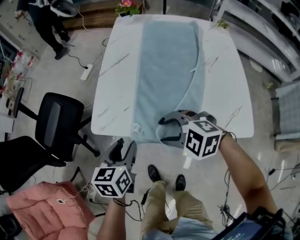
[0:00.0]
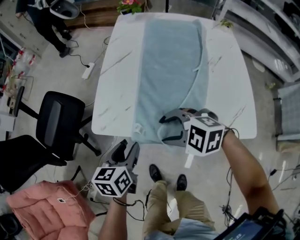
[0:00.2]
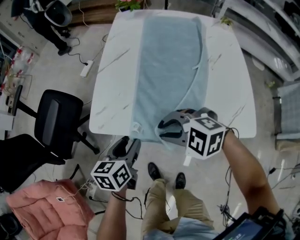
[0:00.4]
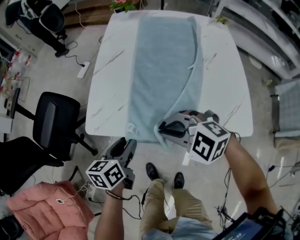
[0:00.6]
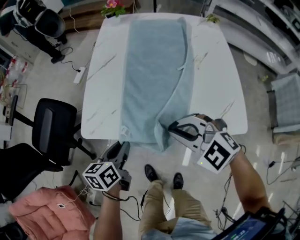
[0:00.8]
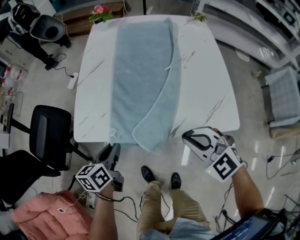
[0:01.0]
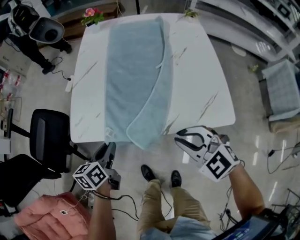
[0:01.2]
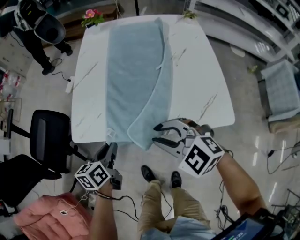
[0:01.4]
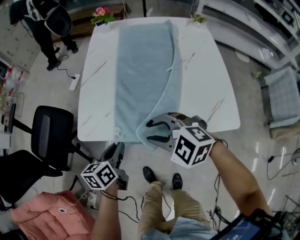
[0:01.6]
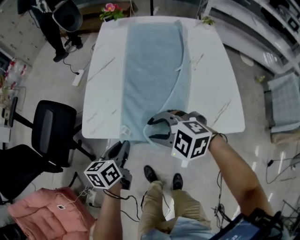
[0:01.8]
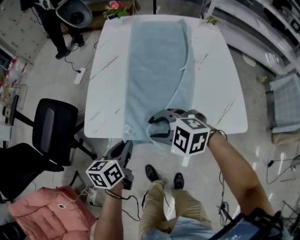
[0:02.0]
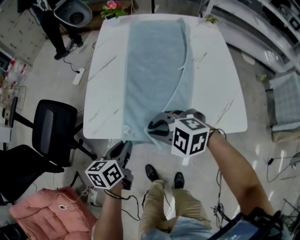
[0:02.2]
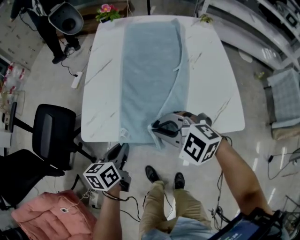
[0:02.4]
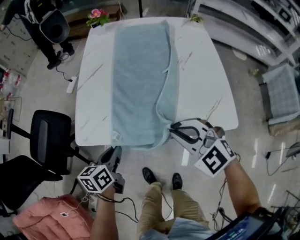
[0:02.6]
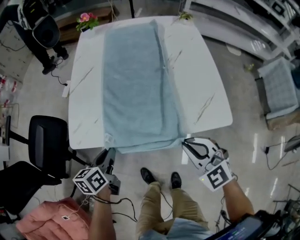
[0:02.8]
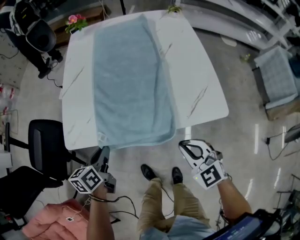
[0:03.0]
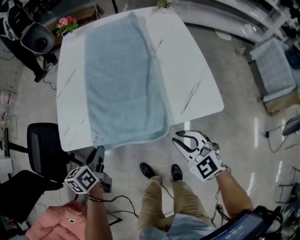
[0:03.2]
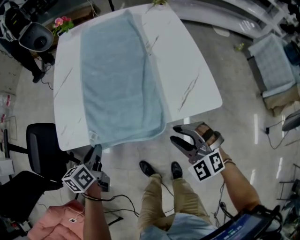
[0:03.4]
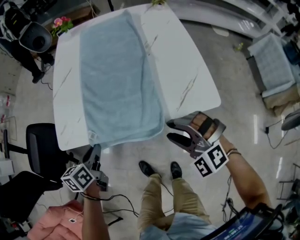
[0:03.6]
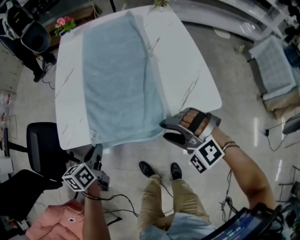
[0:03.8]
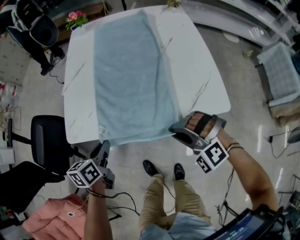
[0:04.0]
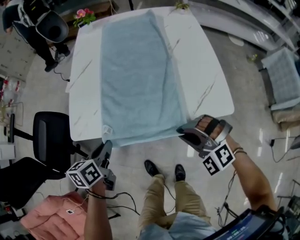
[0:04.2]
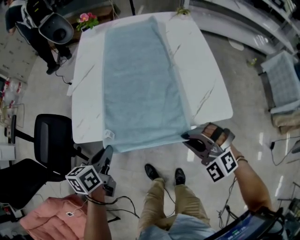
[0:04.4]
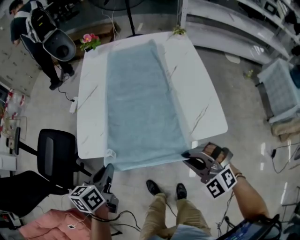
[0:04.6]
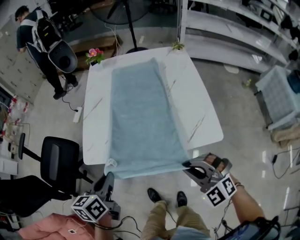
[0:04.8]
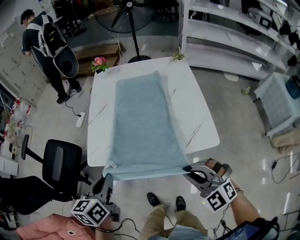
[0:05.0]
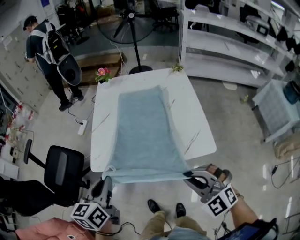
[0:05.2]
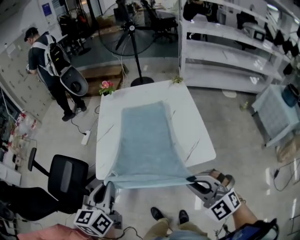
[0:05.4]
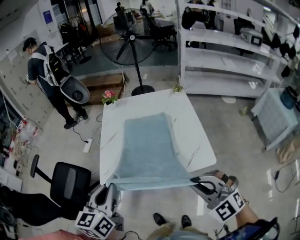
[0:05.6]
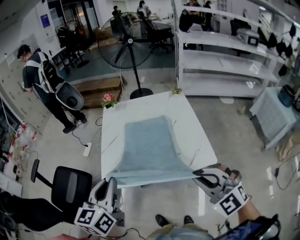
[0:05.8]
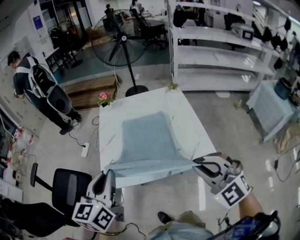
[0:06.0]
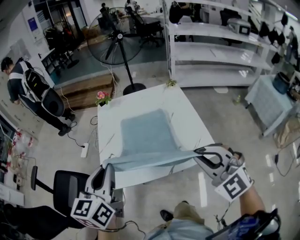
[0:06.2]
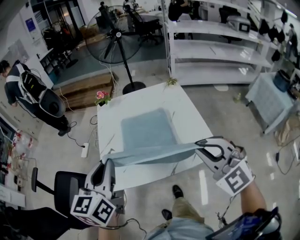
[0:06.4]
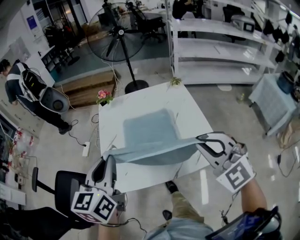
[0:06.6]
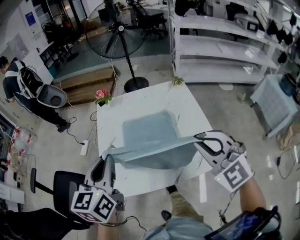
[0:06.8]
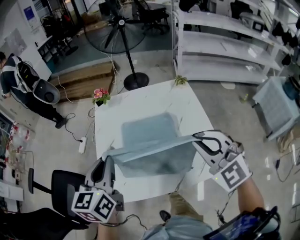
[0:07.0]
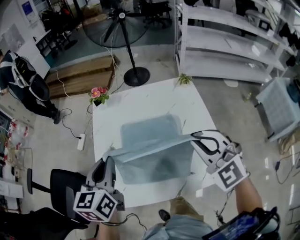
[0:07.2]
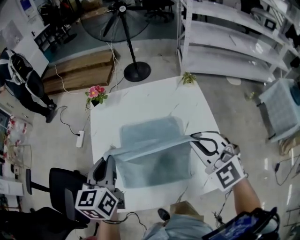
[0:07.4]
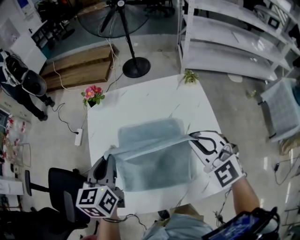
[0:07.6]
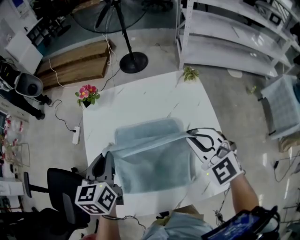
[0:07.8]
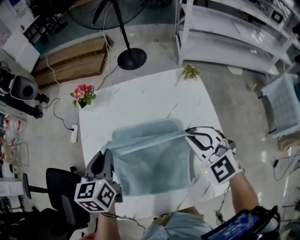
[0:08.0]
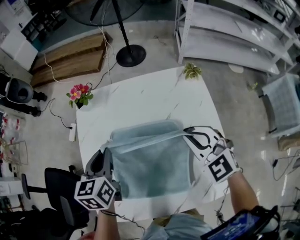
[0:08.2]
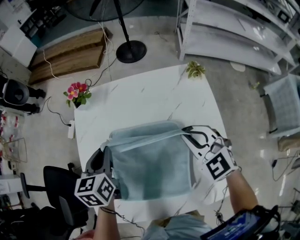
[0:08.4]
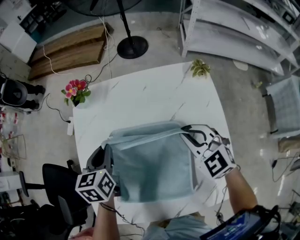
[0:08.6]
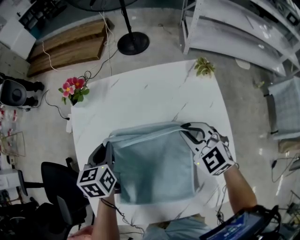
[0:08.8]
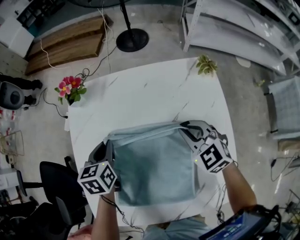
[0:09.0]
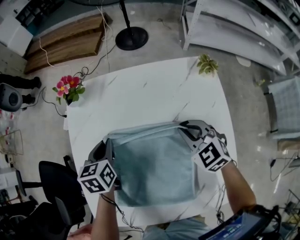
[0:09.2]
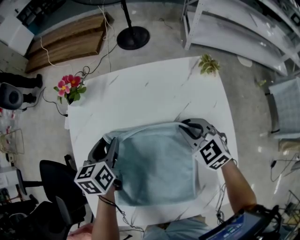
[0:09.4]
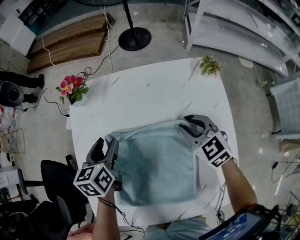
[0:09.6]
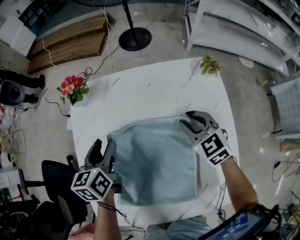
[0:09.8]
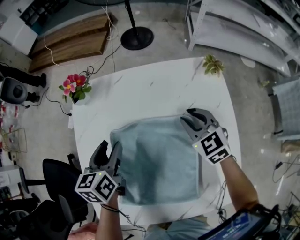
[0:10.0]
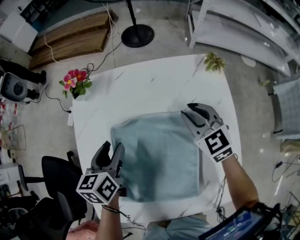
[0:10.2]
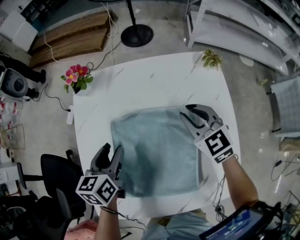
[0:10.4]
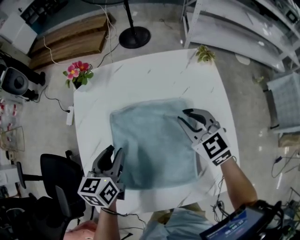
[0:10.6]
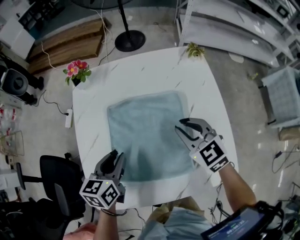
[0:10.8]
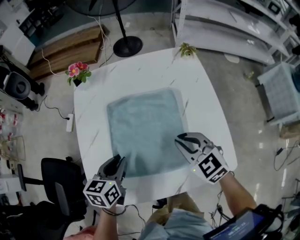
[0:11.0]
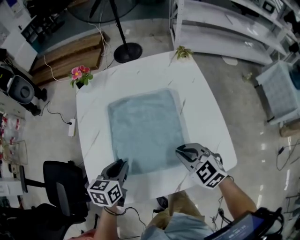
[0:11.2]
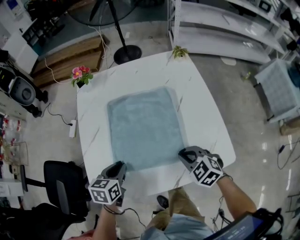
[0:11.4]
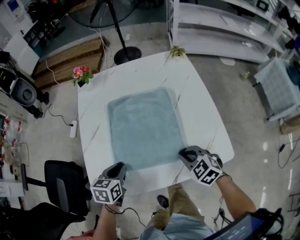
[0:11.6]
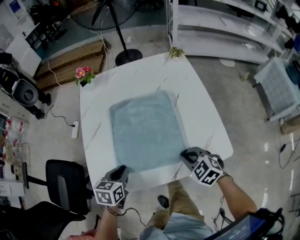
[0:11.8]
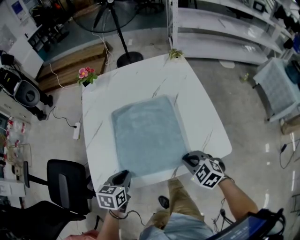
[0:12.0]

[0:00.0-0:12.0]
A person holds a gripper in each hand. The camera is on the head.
0:00.0 to 0:01.6: The right gripper travels to the right and back again, some 15 cm each way, and closes, then reopens. Meanwhile the left gripper closes up.
0:01.6 to 0:03.0: The right gripper moves to the right and backward, approximately 20 cm, turns by roughly 40 degrees, and closes up.
0:03.0 to 0:04.4: The right gripper rotates roughly 40 degrees, and opens, then closes again.
0:04.4 to 0:06.0: The grippers both shift upward by some 30 cm. The right gripper rotates about 30 degrees, while the left gripper turns by approximately 40 degrees.
0:06.0 to 0:07.6: The right gripper goes roughly 30 cm forward; the left gripper moves forward and downward, approximately 30 cm.
0:07.6 to 0:09.0: Both grippers move downward and forward, approximately 20 cm.
0:09.0 to 0:10.4: The left gripper shifts about 5 cm backward, and opens.
0:10.4 to 0:12.0: The two grippers go about 30 cm backward. The left gripper rotates some 20 degrees, and closes its fingers.

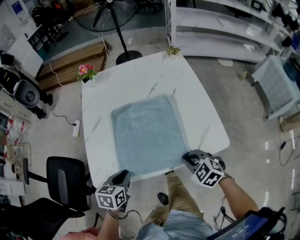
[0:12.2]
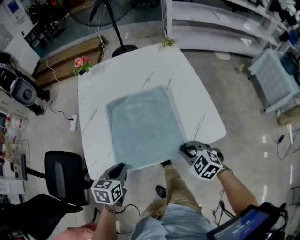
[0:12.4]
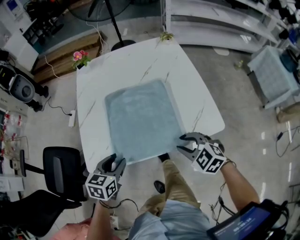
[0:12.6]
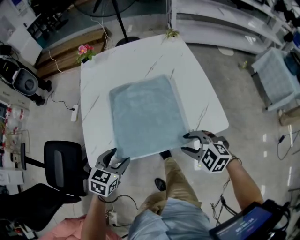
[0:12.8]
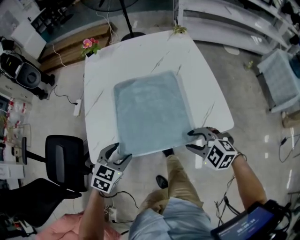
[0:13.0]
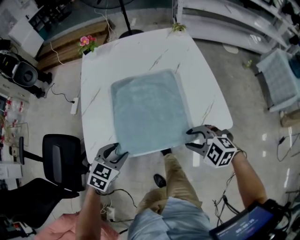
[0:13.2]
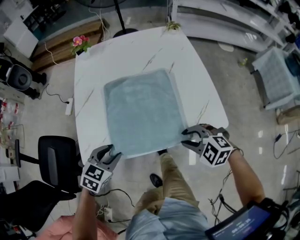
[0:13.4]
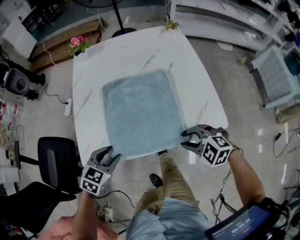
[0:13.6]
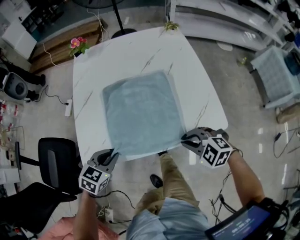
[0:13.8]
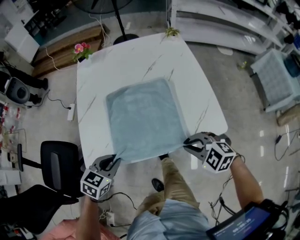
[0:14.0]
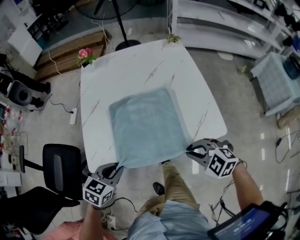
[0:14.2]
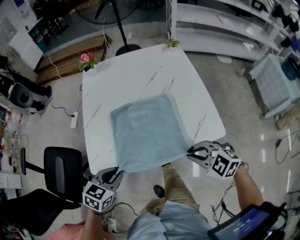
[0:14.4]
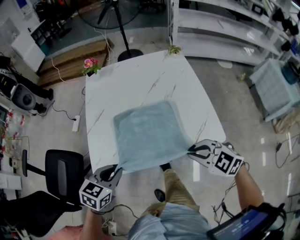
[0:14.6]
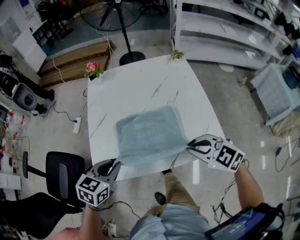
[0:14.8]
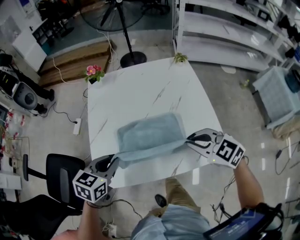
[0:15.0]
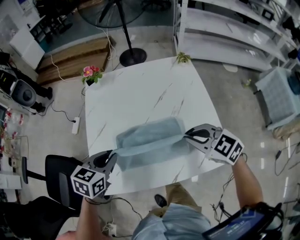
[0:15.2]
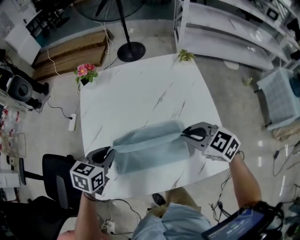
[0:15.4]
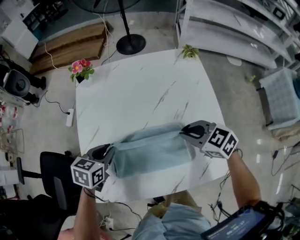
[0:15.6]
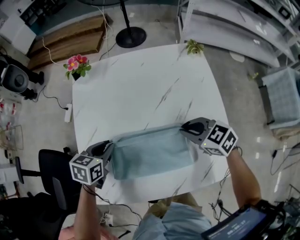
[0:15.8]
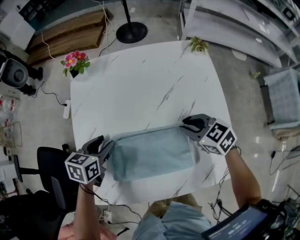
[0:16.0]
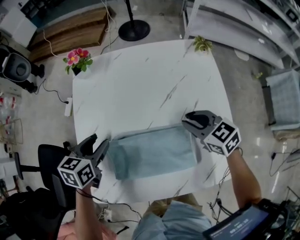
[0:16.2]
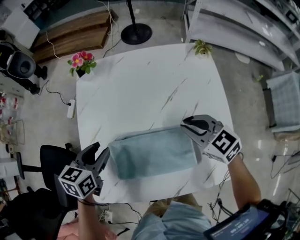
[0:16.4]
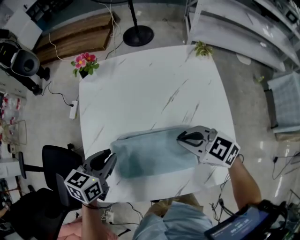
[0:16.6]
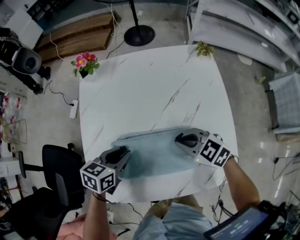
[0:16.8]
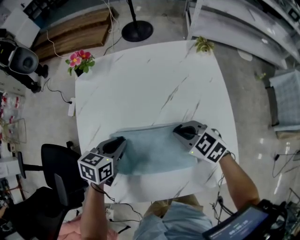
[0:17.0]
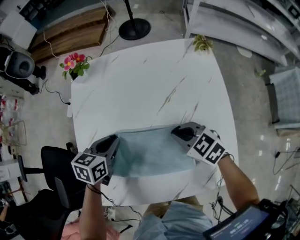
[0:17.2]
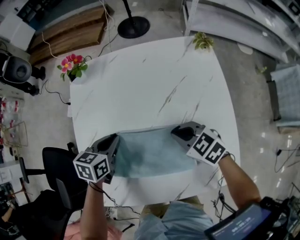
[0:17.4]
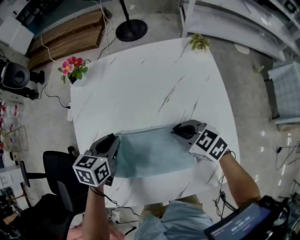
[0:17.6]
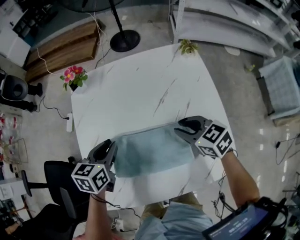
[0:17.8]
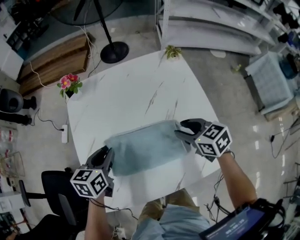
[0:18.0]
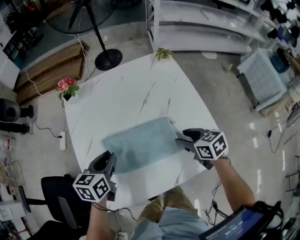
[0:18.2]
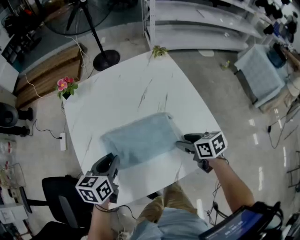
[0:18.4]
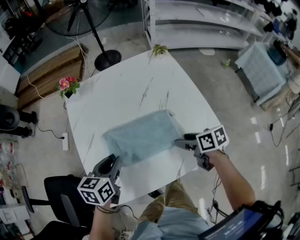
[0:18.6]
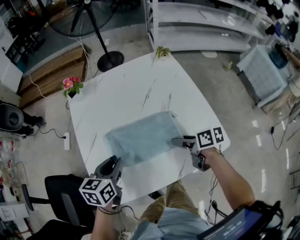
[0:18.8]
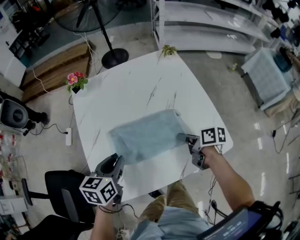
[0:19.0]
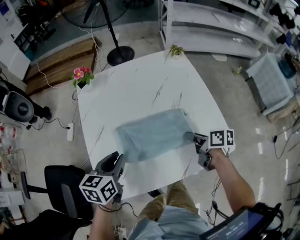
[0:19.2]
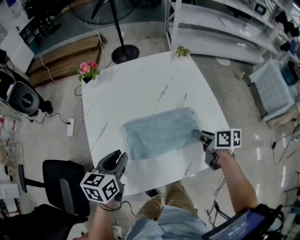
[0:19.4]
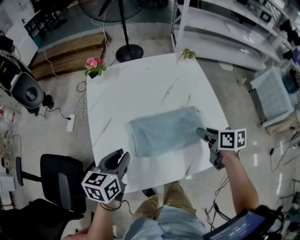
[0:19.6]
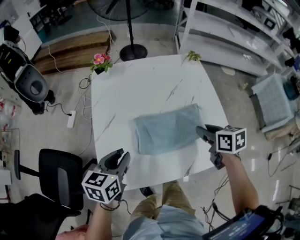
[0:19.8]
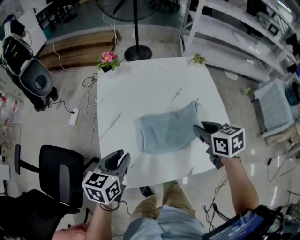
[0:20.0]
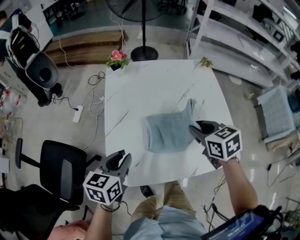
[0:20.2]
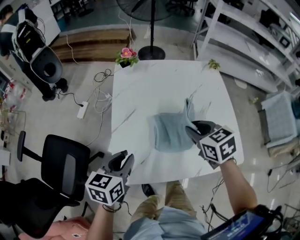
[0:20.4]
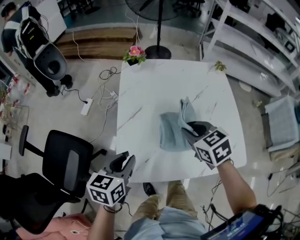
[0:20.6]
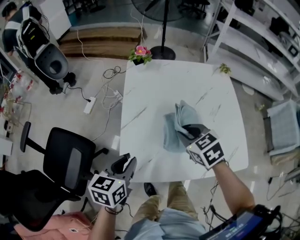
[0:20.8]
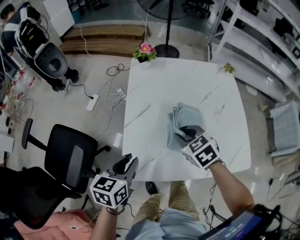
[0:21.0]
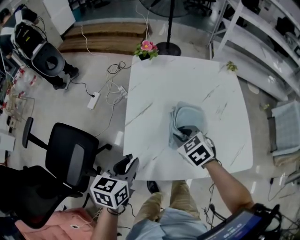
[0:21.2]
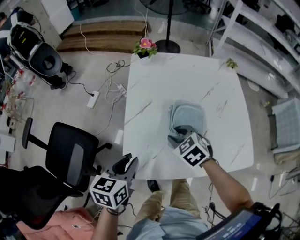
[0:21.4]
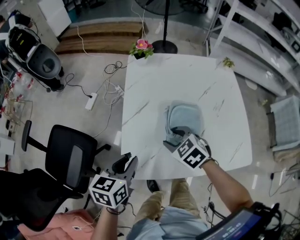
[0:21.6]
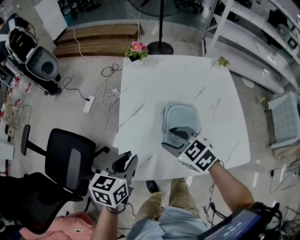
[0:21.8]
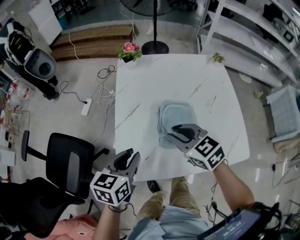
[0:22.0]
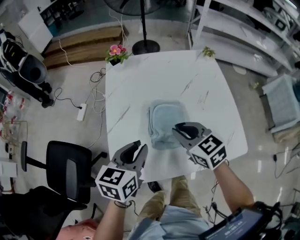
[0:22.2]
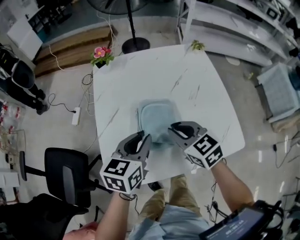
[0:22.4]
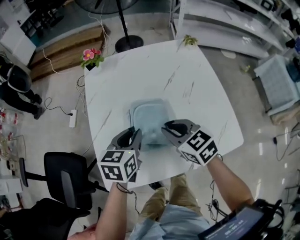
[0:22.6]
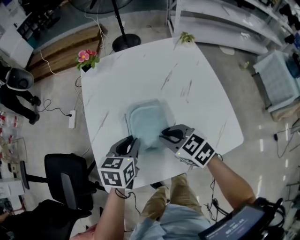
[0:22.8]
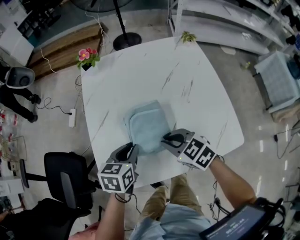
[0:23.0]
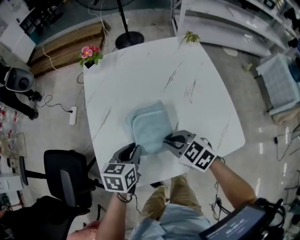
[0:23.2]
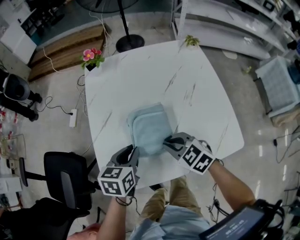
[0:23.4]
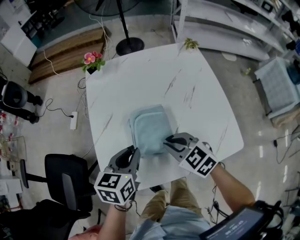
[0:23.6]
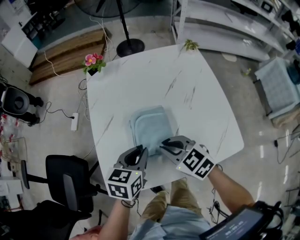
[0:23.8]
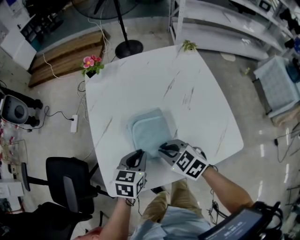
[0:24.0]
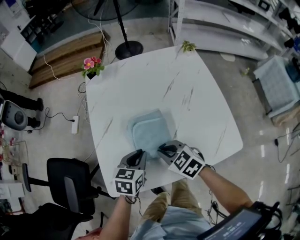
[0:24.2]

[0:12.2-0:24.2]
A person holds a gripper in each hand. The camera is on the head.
0:12.2 to 0:13.8: The left gripper changes its angle by approximately 30 degrees, and opens, then closes again; the right gripper changes its angle by some 20 degrees, and opens, then closes once more.
0:13.8 to 0:15.2: The two grippers go approximately 20 cm forward and upward. The right gripper turns by approximately 20 degrees.
0:15.2 to 0:16.6: The left gripper goes some 5 cm forward, and opens, then closes again; the right gripper heads forward and downward, covering approximately 10 cm.
0:16.6 to 0:18.2: The right gripper is displaced to the right and backward by about 10 cm, turns by roughly 40 degrees, and opens up; the left gripper moves roughly 10 cm downward and comes back.
0:18.2 to 0:19.8: The left gripper is displaced backward by about 10 cm; the right gripper travels upward by approximately 5 cm, and closes up.
0:19.8 to 0:21.2: The right gripper goes approximately 25 cm to the left, and rotates around the line of its fingers by roughly 50 degrees, counterclockwise from behind. Meanwhile the left gripper heads to the left and backward, covering about 10 cm.
0:21.2 to 0:22.6: The left gripper goes some 20 cm to the right and forward, while the right gripper shifts some 10 cm to the right, changes its angle by some 30 degrees, and opens, then closes once more.
0:22.6 to 0:24.2: The right gripper swings up and down, approximately 5 cm each way, with 2 reversals. The left gripper swings up and down, some 10 cm each way, with 2 reversals.
